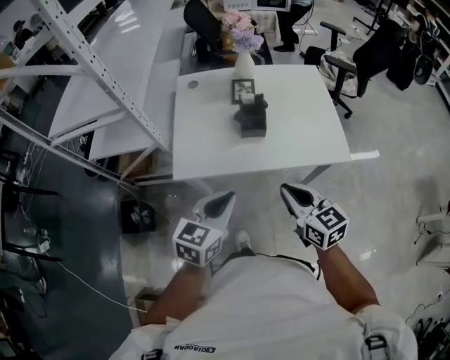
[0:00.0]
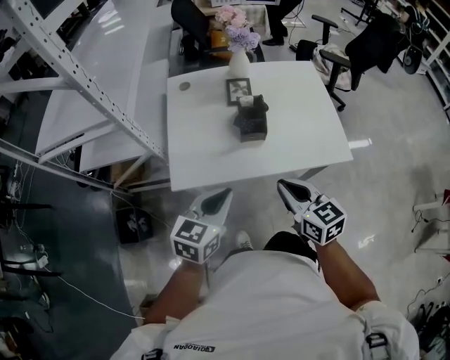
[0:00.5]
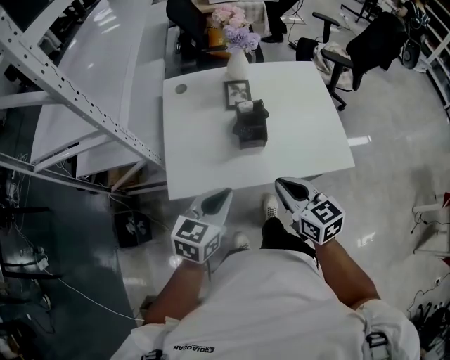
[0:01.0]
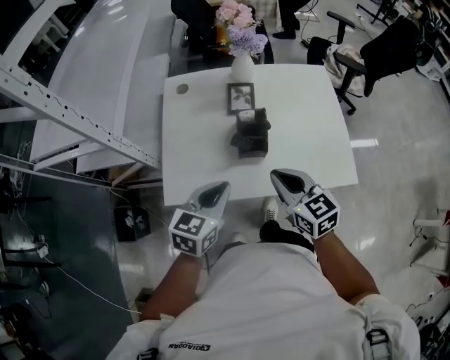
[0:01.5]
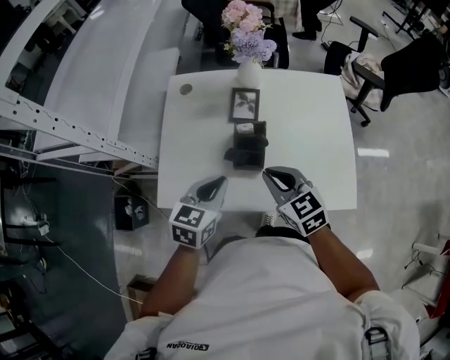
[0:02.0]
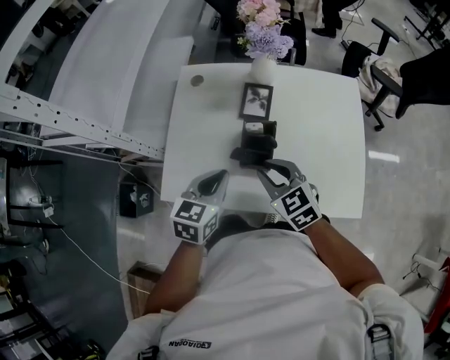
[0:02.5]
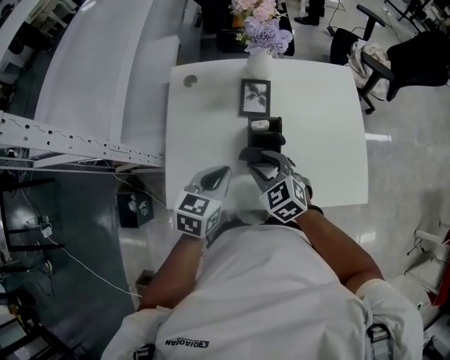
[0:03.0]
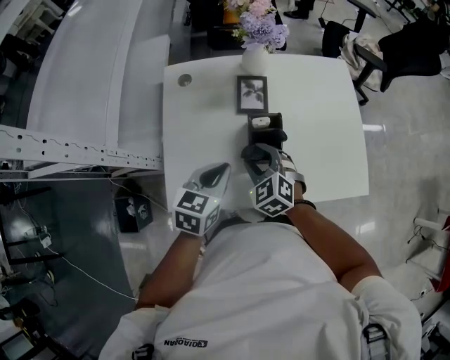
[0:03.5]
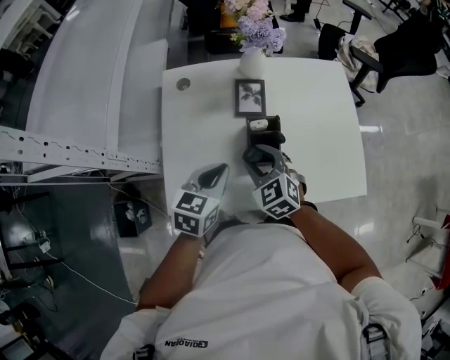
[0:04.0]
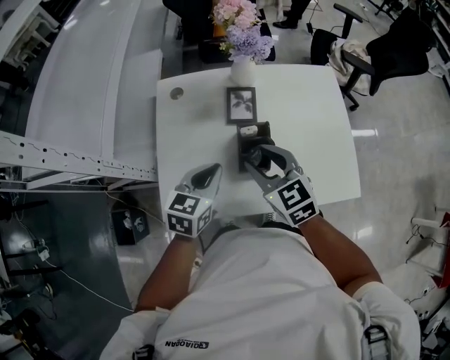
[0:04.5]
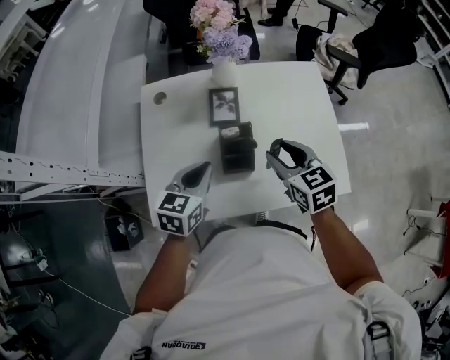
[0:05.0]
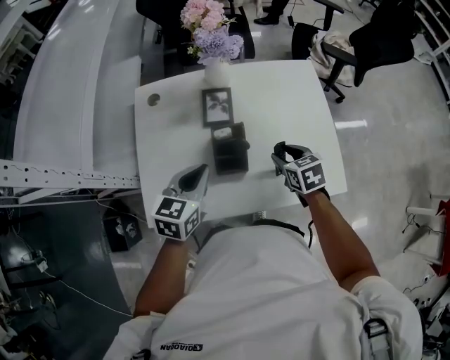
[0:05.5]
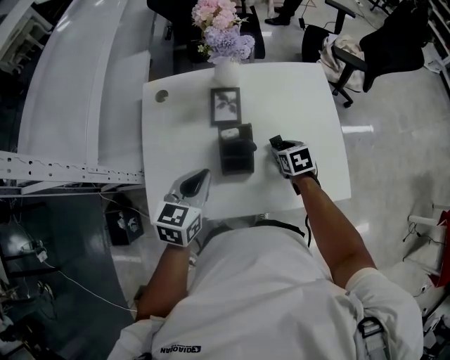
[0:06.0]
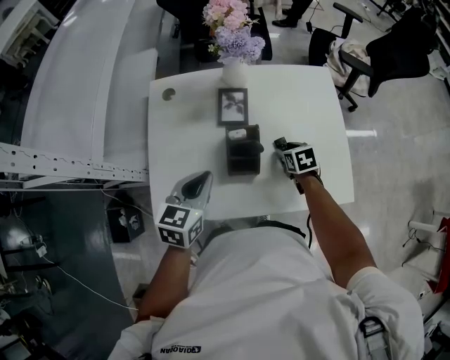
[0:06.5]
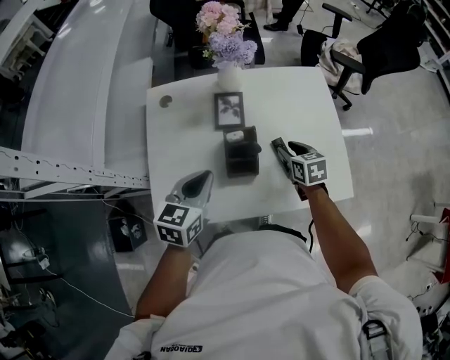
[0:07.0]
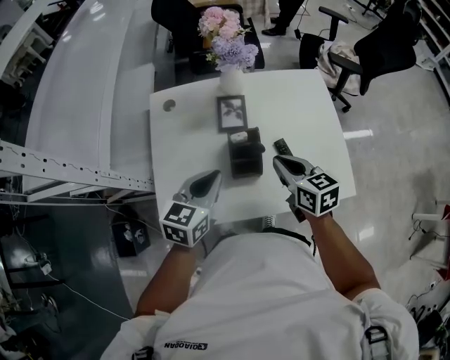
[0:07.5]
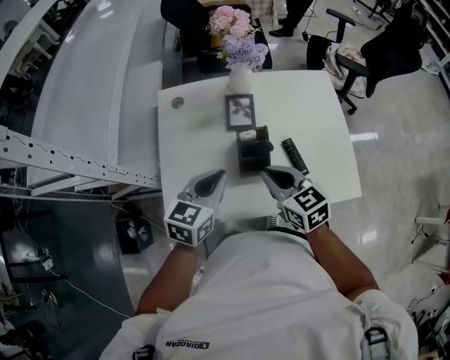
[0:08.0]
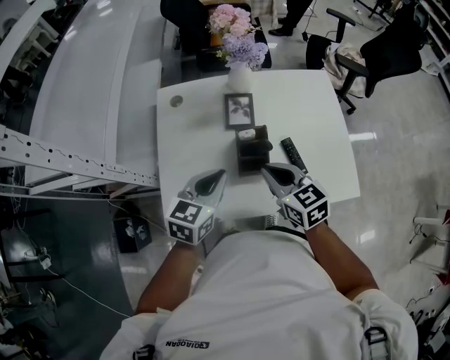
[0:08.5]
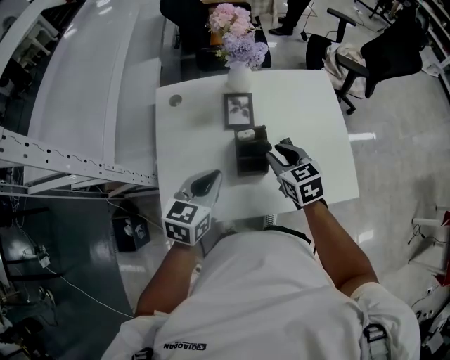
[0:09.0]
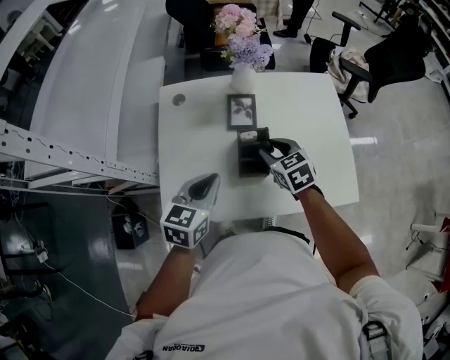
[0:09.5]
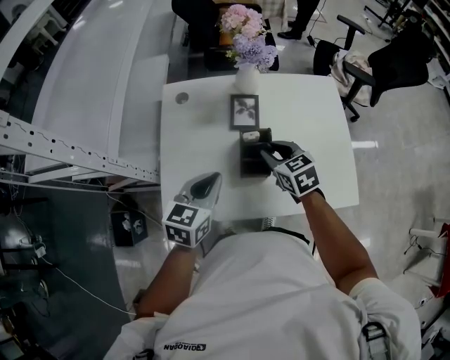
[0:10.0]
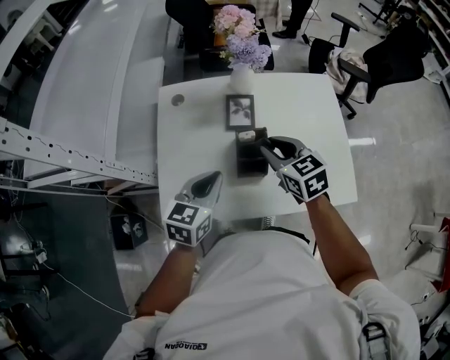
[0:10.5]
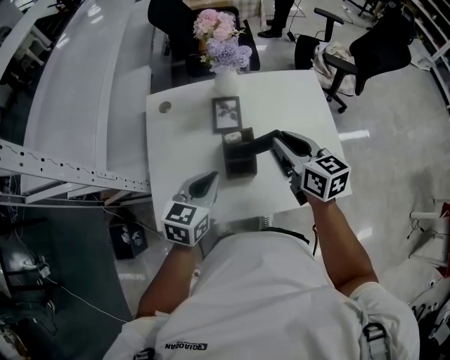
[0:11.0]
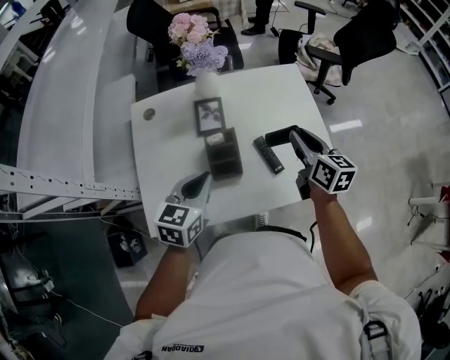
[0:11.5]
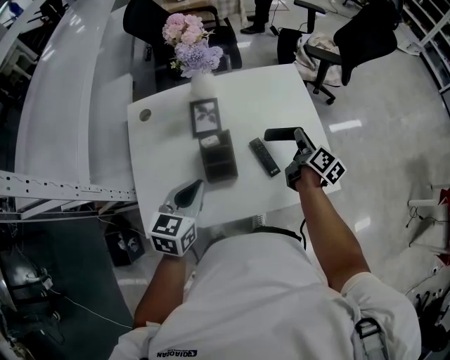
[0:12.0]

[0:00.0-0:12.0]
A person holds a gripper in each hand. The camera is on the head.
0:00.0 to 0:02.0: The grippers both shift forward by some 25 cm.
0:02.0 to 0:04.0: The right gripper goes approximately 15 cm to the left, forward and downward, changes its angle by some 20 degrees, and opens, while the left gripper is displaced forward and to the left by approximately 5 cm.
0:04.0 to 0:06.0: The right gripper moves to the right and downward, about 20 cm, and swivels roughly 40 degrees.
0:06.0 to 0:08.0: The right gripper is displaced upward, to the left and backward by approximately 25 cm, swivels roughly 30 degrees, and closes.
0:08.0 to 0:10.0: The right gripper heads forward, covering about 10 cm, and opens.
0:10.0 to 0:12.0: The right gripper travels to the right by roughly 25 cm, and twists approximately 60 degrees clockwise, seen from behind; the left gripper heads to the right, covering approximately 5 cm.

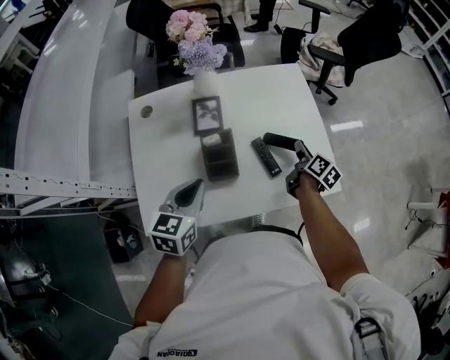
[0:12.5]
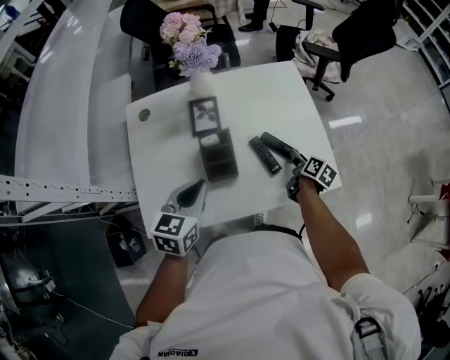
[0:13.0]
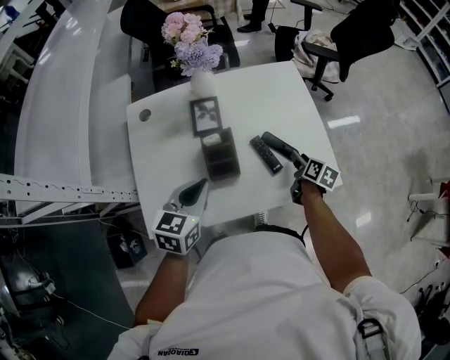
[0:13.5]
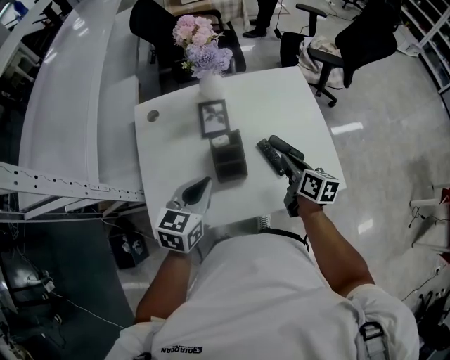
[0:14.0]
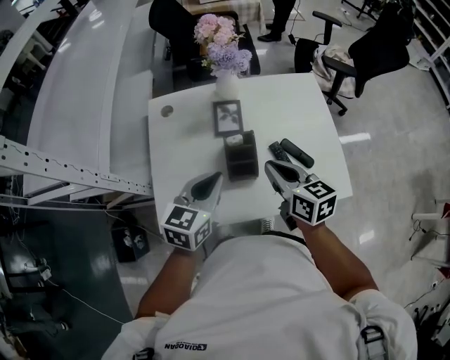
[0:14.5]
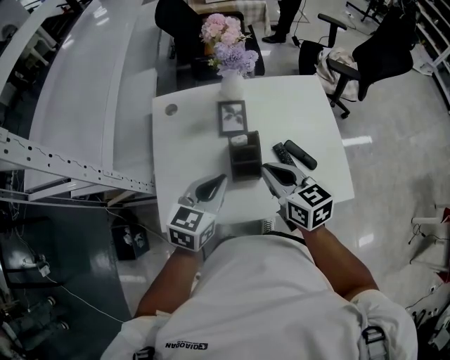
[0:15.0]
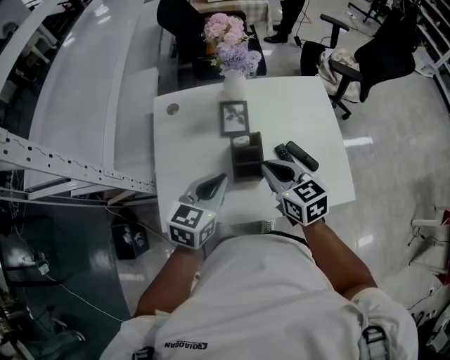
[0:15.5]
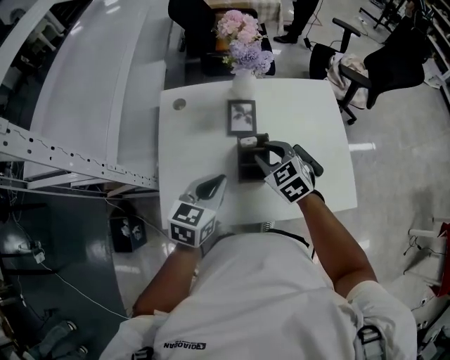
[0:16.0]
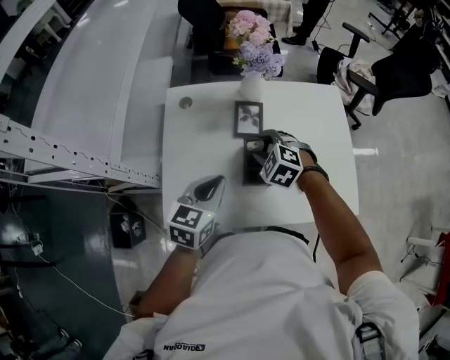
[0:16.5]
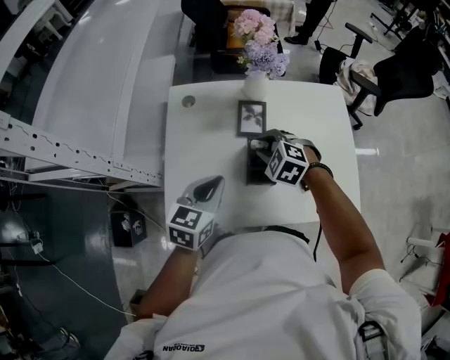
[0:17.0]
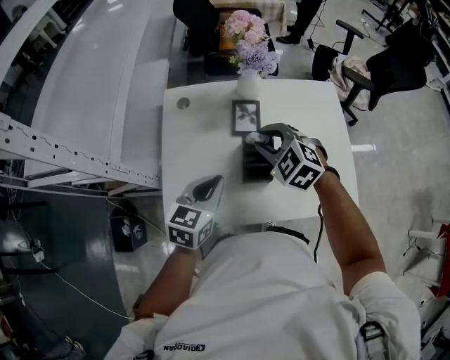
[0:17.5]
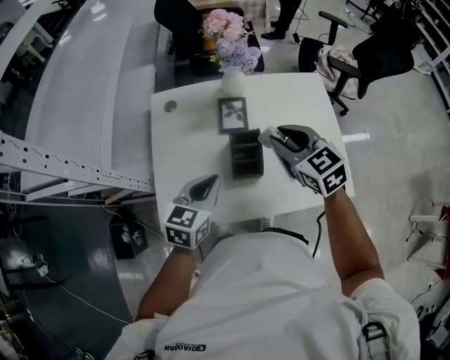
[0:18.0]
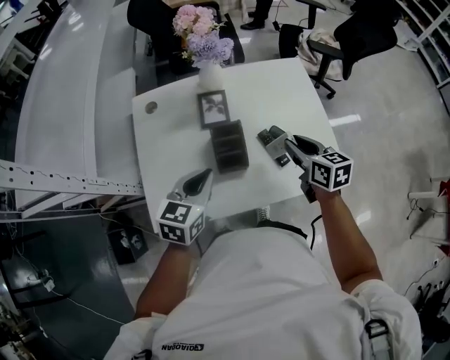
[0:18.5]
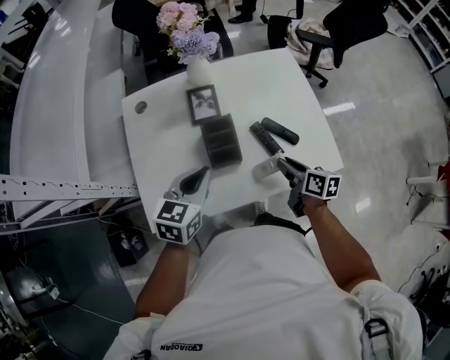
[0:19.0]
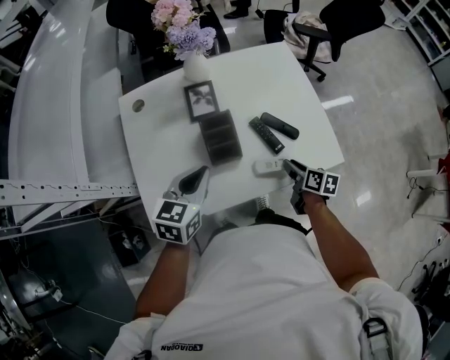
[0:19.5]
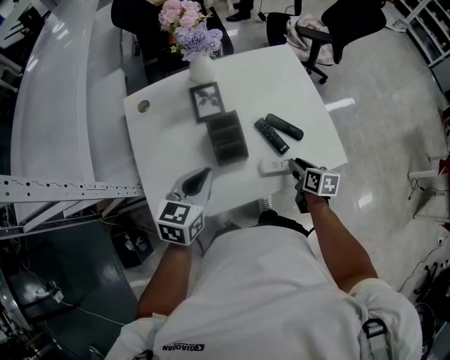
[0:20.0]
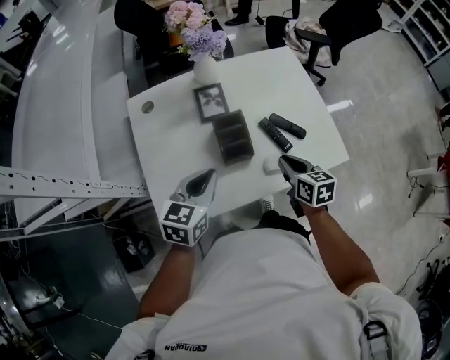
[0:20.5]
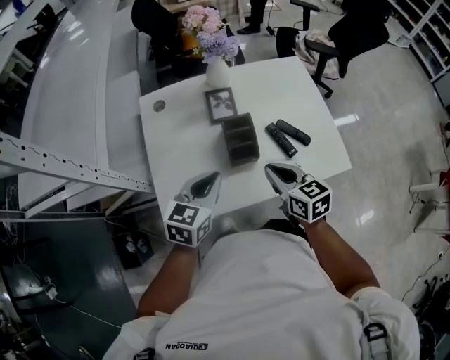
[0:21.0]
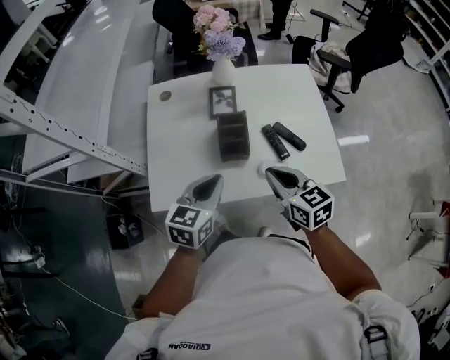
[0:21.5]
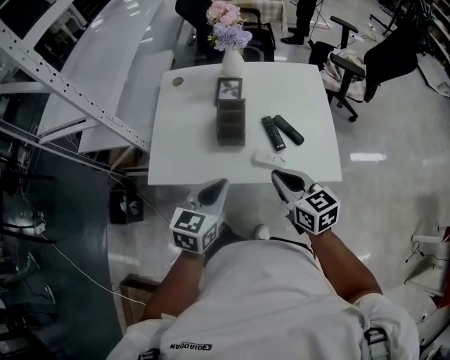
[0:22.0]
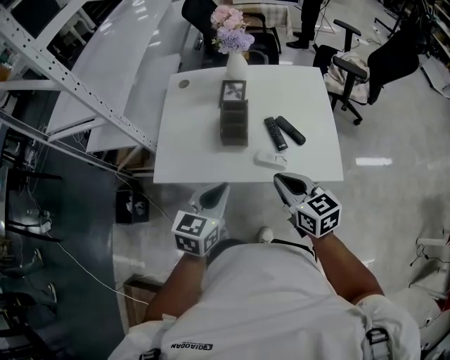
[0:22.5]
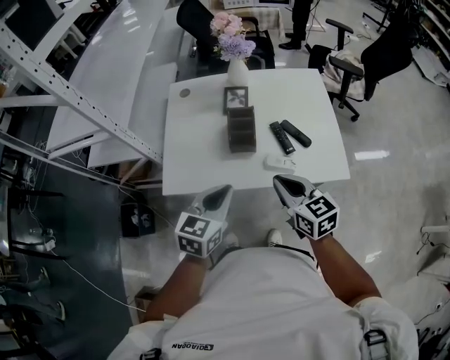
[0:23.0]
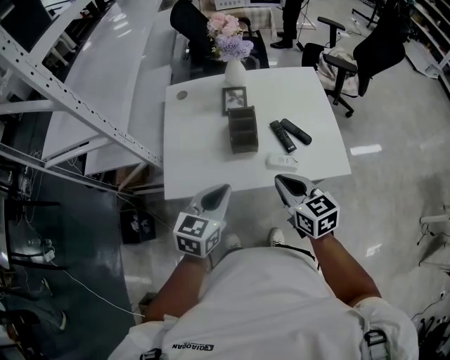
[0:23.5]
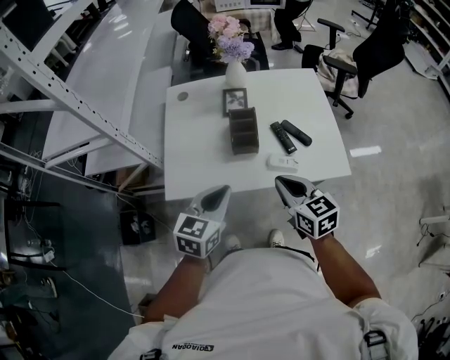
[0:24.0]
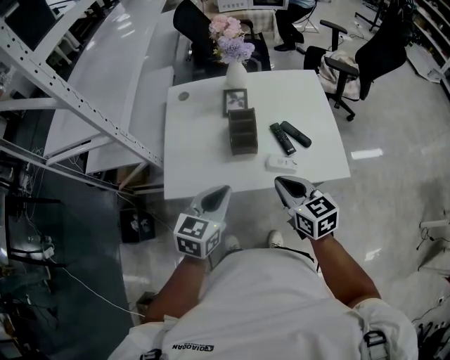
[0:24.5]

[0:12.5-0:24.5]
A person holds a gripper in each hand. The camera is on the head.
0:12.5 to 0:14.5: The right gripper heads to the left, upward and backward, covering some 30 cm, changes its angle by some 50 degrees, and closes its fingers.
0:14.5 to 0:16.5: The left gripper ends up approximately 5 cm from where it was. Meanwhile the right gripper heads forward, downward and to the left, covering approximately 15 cm, twists approximately 60 degrees counterclockwise, seen from behind, and opens.
0:16.5 to 0:18.5: The right gripper moves to the right and backward, about 20 cm, rotates around the line of its fingers by roughly 70 degrees, clockwise from behind, and closes.
0:18.5 to 0:20.5: The right gripper is displaced backward and downward by about 10 cm.
0:20.5 to 0:22.5: The left gripper travels backward and to the right by approximately 20 cm. The right gripper heads backward and upward, covering some 15 cm, and swivels some 40 degrees.
0:22.5 to 0:24.5: Both grippers travel together to the left, some 5 cm.

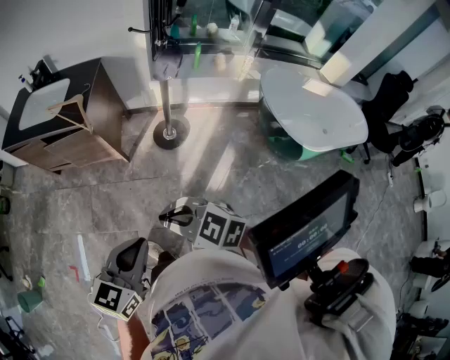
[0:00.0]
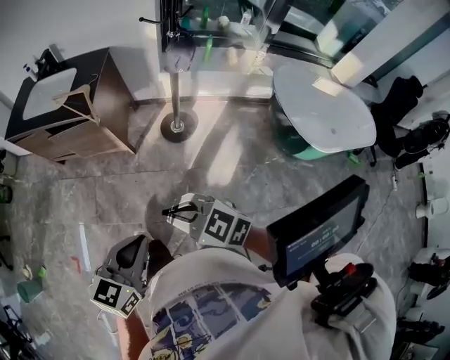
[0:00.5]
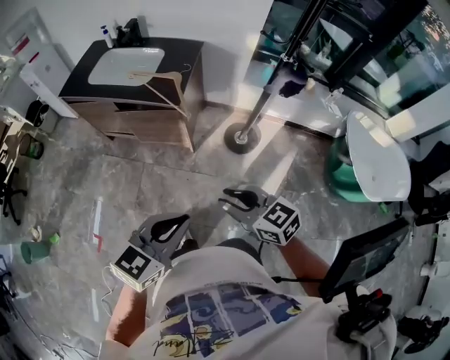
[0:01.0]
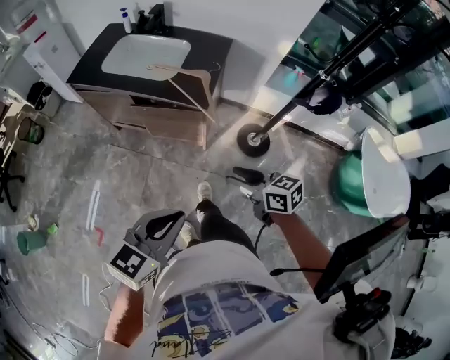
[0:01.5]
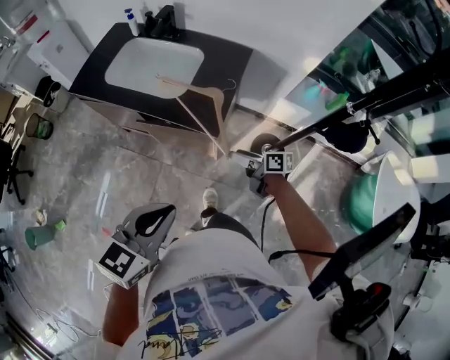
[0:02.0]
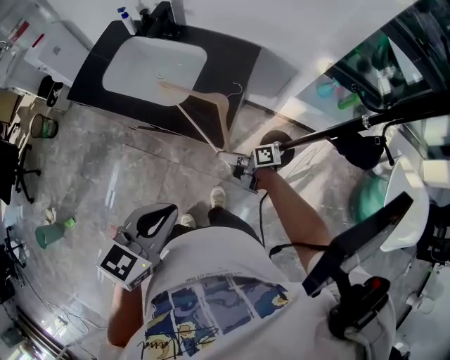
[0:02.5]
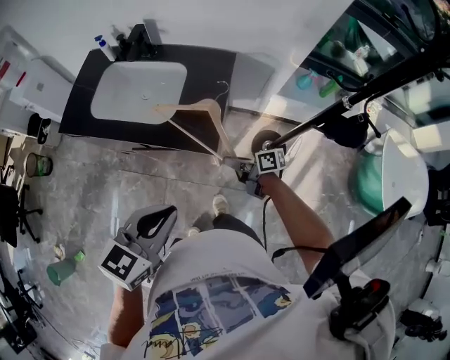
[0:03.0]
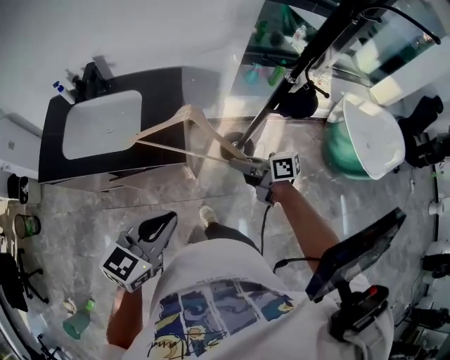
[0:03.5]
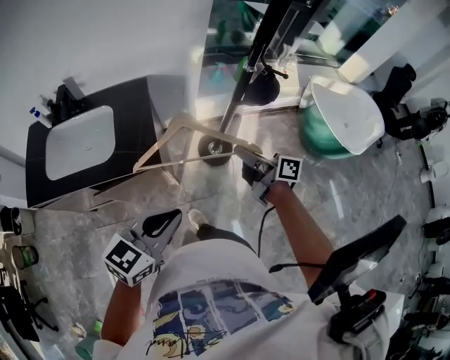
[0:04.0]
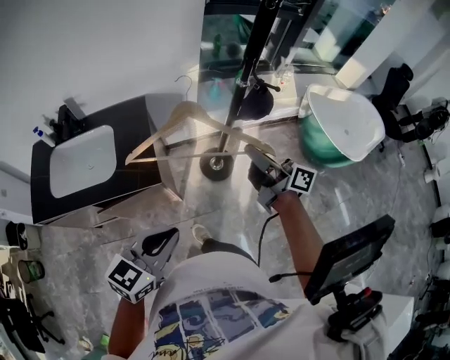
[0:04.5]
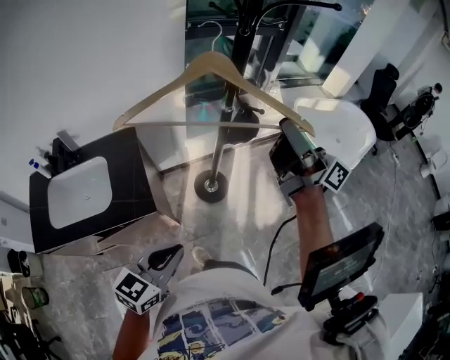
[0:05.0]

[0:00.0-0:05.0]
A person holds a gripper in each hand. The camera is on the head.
0:00.0 to 0:02.5: Both grippers are carried forward, roughly 50 cm. The right gripper heads downward, covering about 25 cm, rolls clockwise, seen from behind, by approximately 70 degrees, and opens its fingers.
0:02.5 to 0:05.0: The left gripper changes place by approximately 10 cm, and turns by about 40 degrees. The right gripper goes about 50 cm upward, points its fingers about 40 degrees further upward, and closes its fingers.
